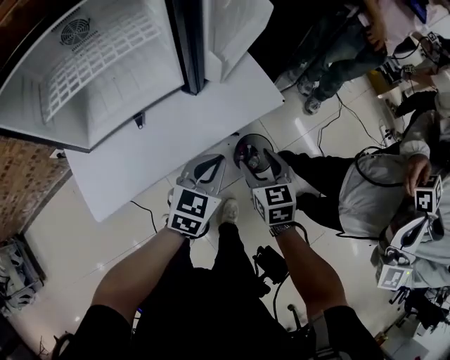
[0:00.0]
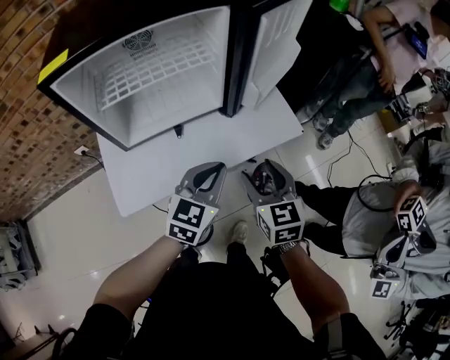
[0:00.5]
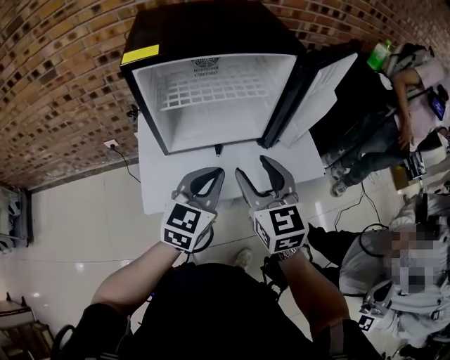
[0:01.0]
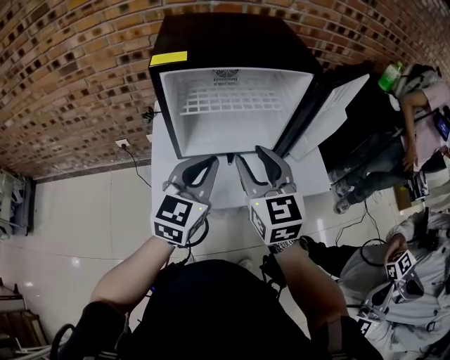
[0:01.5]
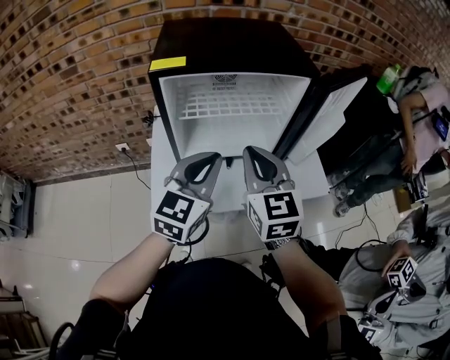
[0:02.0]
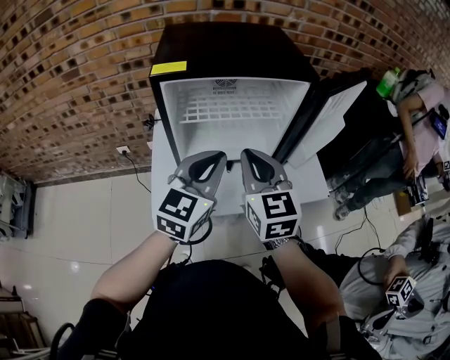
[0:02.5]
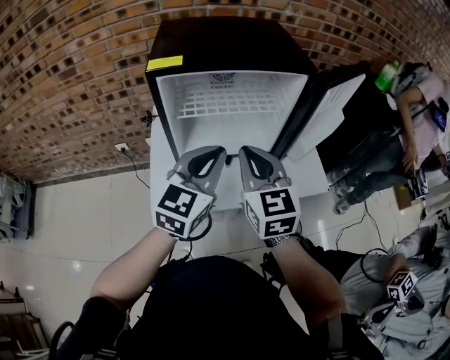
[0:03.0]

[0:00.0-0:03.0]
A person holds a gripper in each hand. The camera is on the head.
0:00.0 to 0:01.5: The left gripper ends up some 35 cm from where it was, and rotates some 30 degrees; the right gripper travels upward by some 30 cm, and swivels approximately 40 degrees.
0:01.5 to 0:03.0: The right gripper closes up.

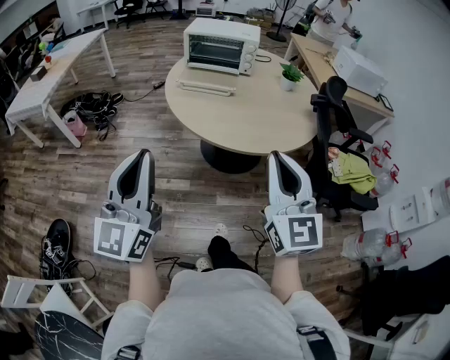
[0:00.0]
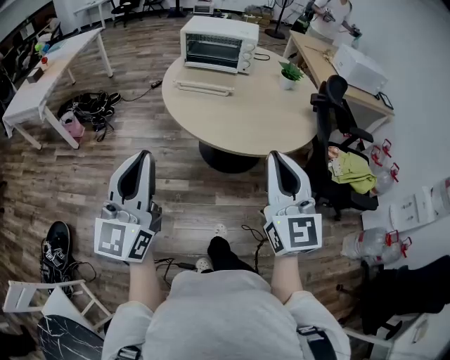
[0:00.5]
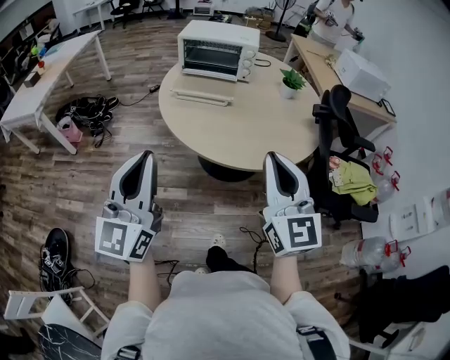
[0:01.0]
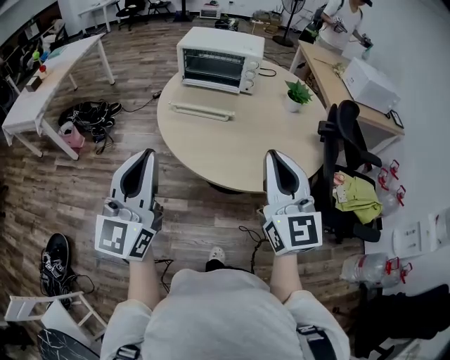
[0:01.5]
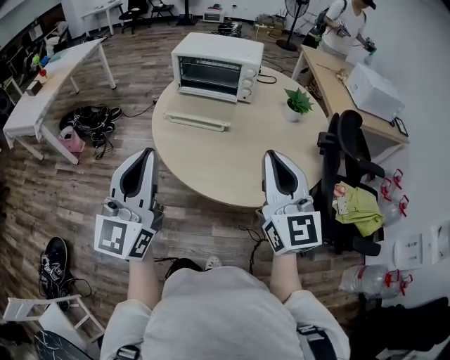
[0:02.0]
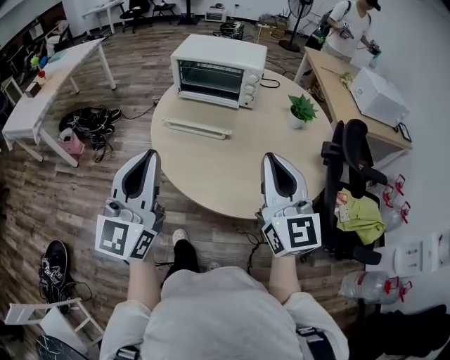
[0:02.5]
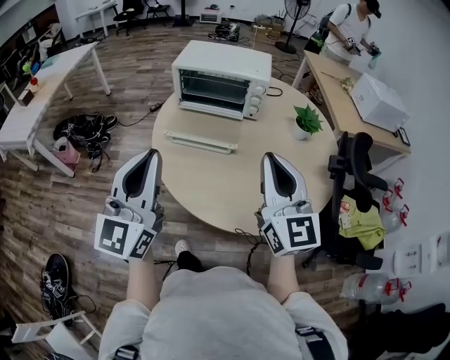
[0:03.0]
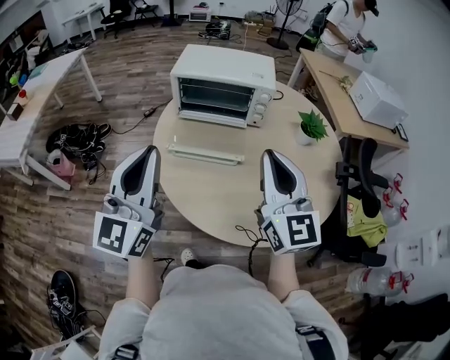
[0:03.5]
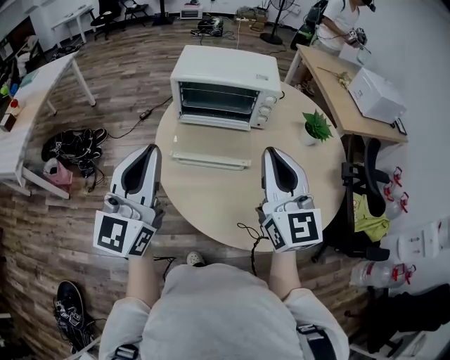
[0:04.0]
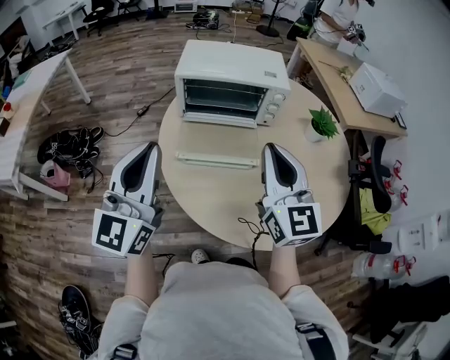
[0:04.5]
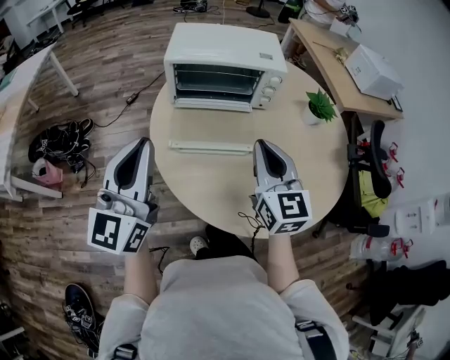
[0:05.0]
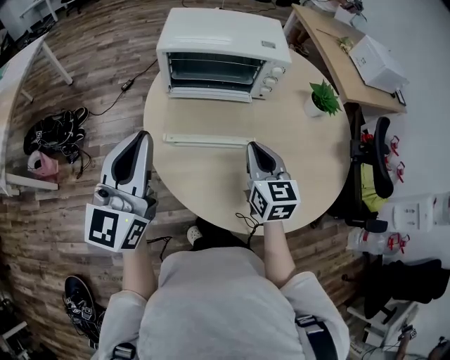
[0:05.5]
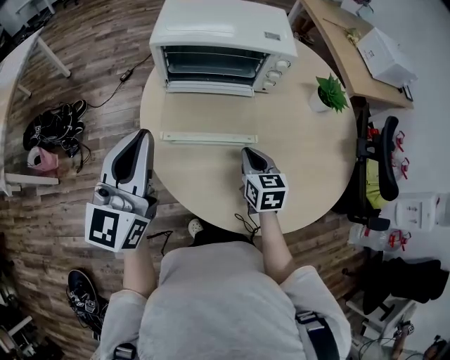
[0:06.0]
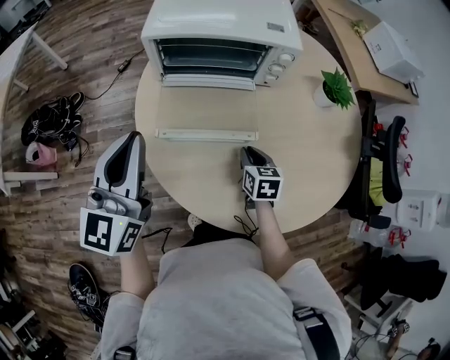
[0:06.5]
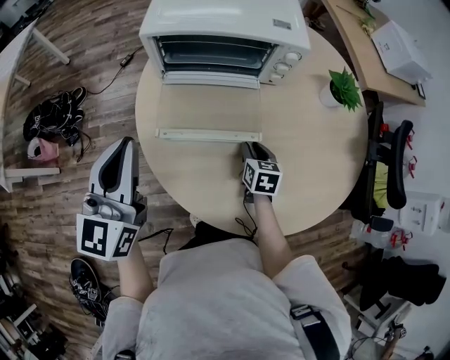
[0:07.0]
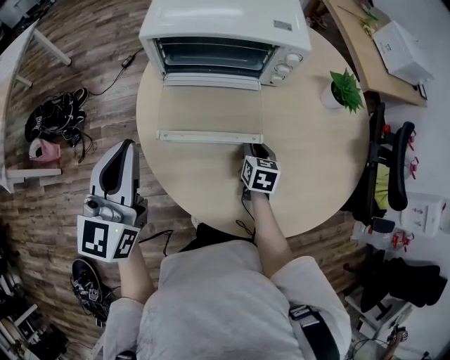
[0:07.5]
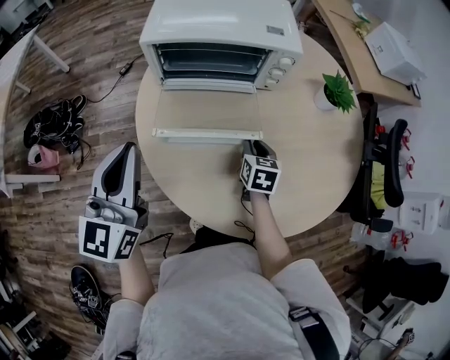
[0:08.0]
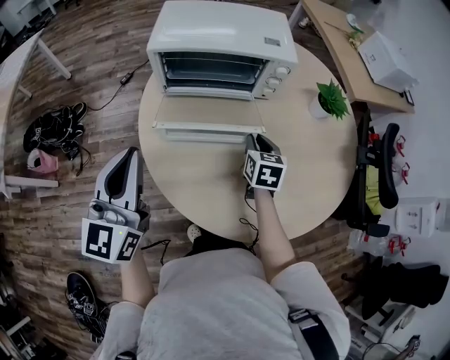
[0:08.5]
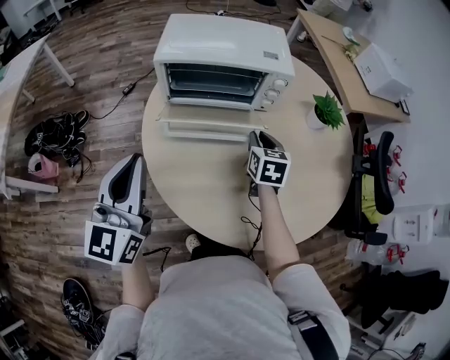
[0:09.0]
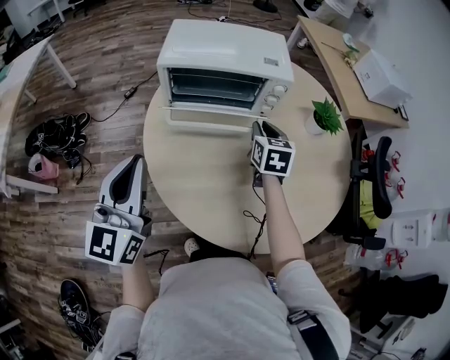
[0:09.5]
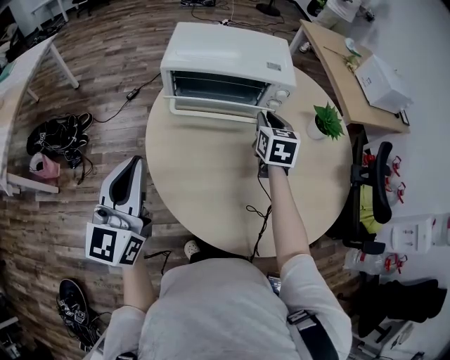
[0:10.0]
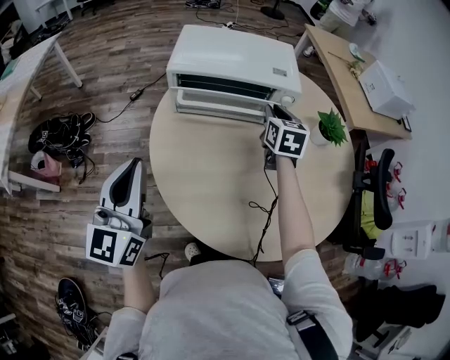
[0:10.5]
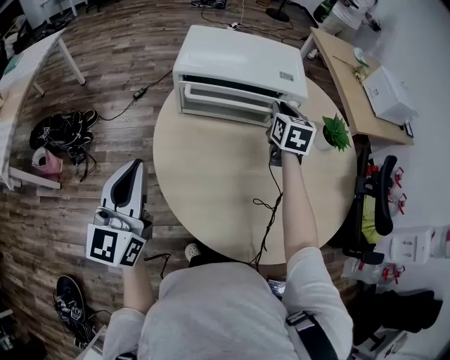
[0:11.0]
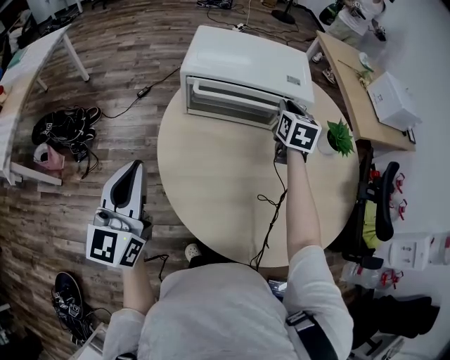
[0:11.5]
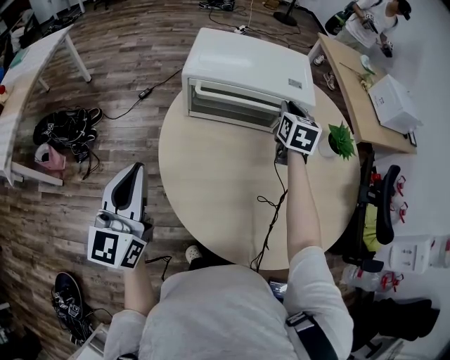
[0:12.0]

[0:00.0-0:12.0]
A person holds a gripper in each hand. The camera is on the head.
0:00.0 to 0:02.0: Both grippers move forward, some 25 cm.
0:02.0 to 0:04.0: Both grippers move forward and to the left, some 25 cm.
0:04.0 to 0:06.0: The left gripper shifts approximately 15 cm forward and downward. Meanwhile the right gripper moves downward, roughly 30 cm, and angles its fingers downward, by approximately 40 degrees.
0:06.0 to 0:08.0: The right gripper heads downward and forward, covering some 10 cm.
0:08.0 to 0:10.0: The right gripper travels upward and forward by some 20 cm.
0:10.0 to 0:12.0: The right gripper goes some 10 cm forward.

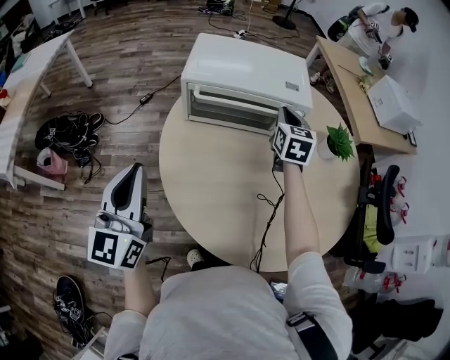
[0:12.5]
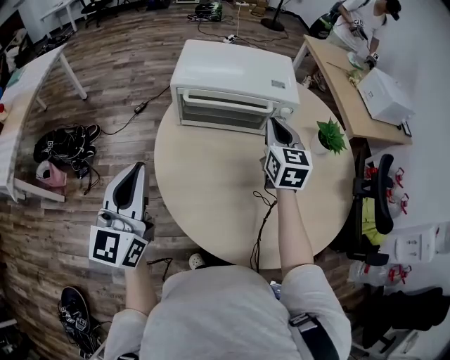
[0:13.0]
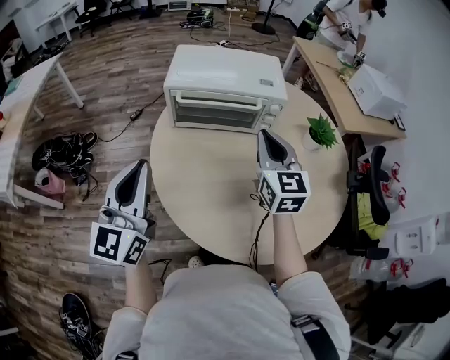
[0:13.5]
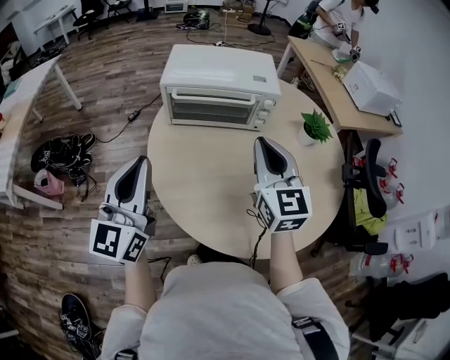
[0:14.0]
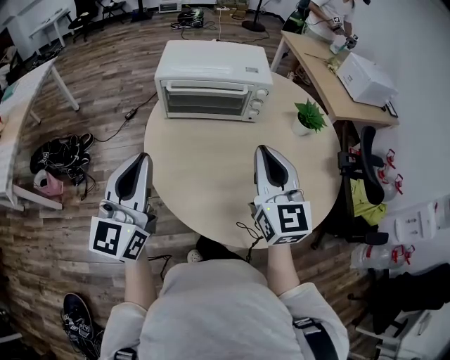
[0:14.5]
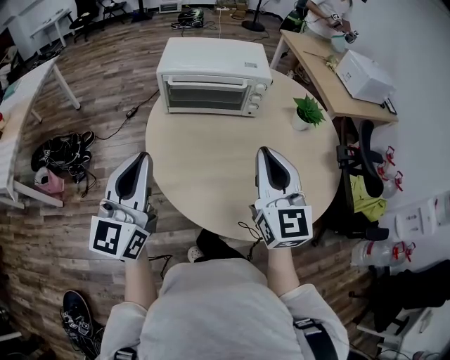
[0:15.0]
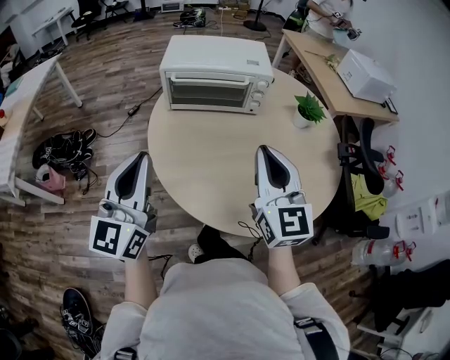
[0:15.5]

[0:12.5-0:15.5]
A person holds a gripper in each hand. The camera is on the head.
0:12.5 to 0:14.0: The left gripper heads to the right, covering roughly 5 cm. Meanwhile the right gripper travels backward and upward by some 25 cm, and changes its angle by some 20 degrees.
0:14.0 to 0:15.5: The left gripper is displaced backward by about 5 cm. The right gripper goes some 10 cm backward.

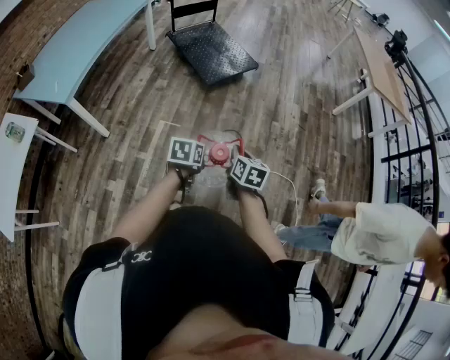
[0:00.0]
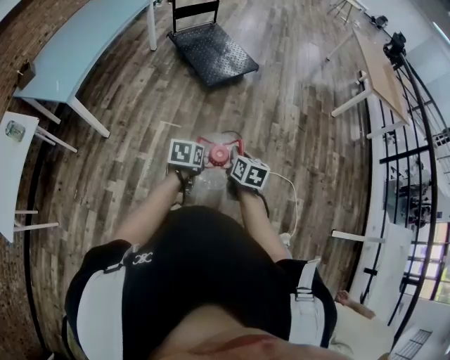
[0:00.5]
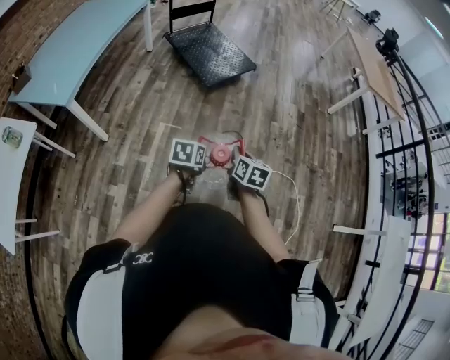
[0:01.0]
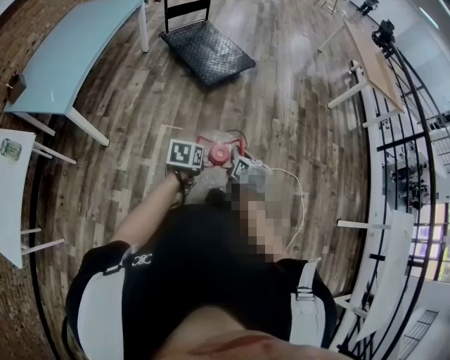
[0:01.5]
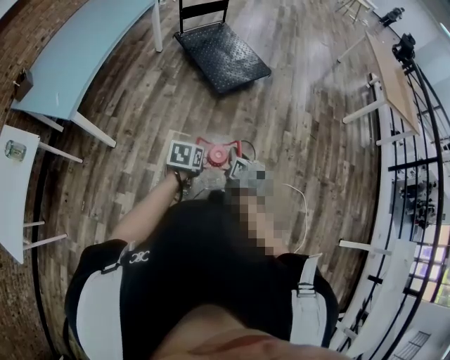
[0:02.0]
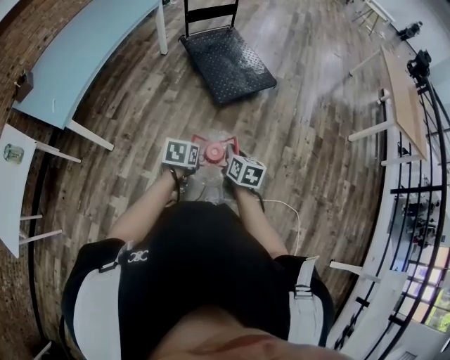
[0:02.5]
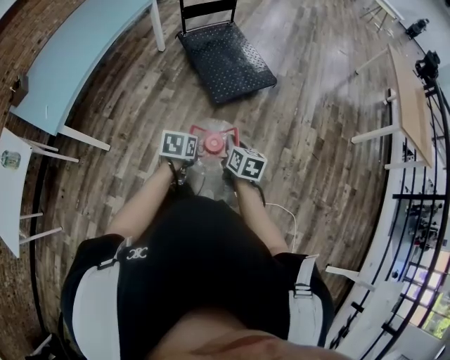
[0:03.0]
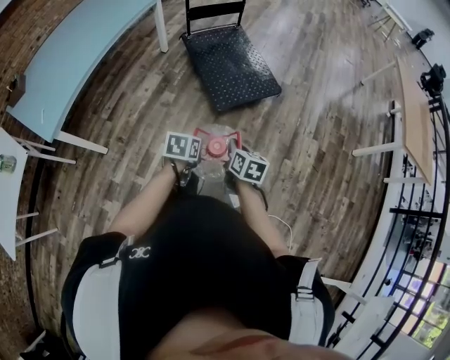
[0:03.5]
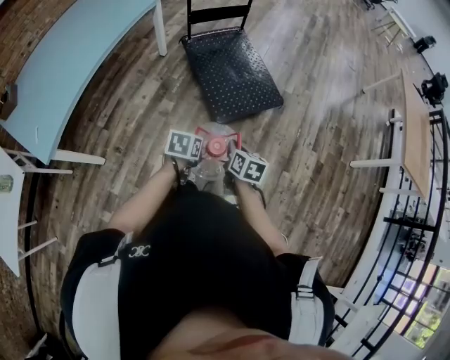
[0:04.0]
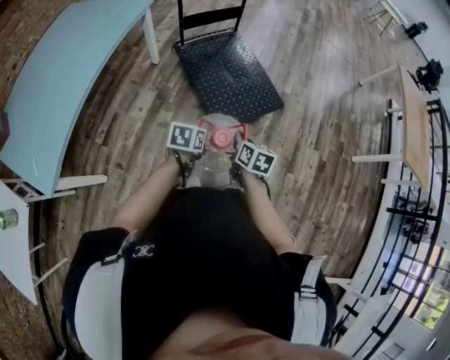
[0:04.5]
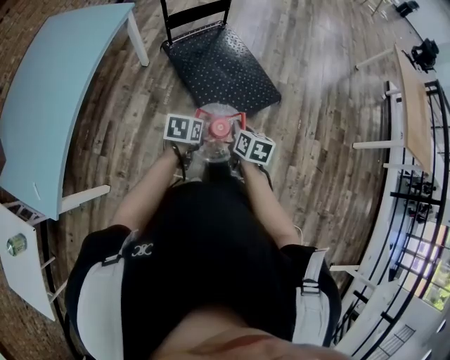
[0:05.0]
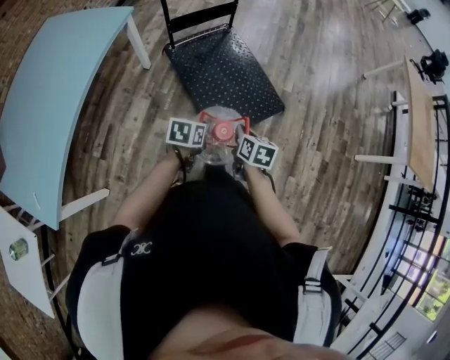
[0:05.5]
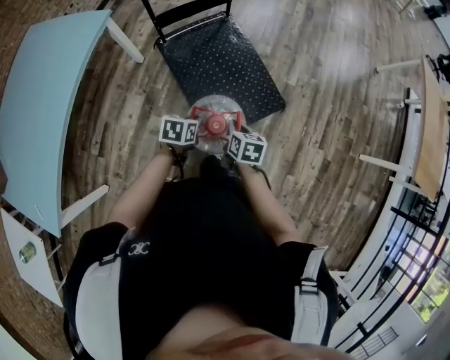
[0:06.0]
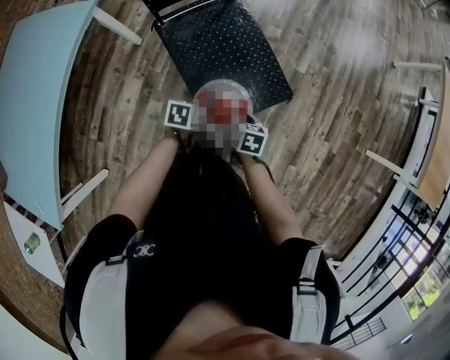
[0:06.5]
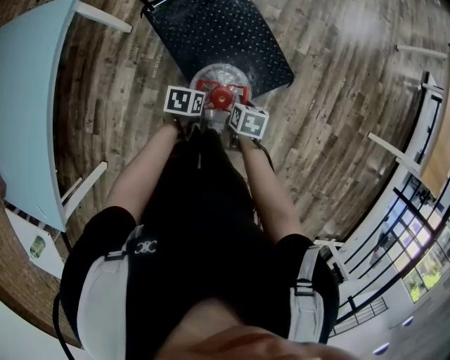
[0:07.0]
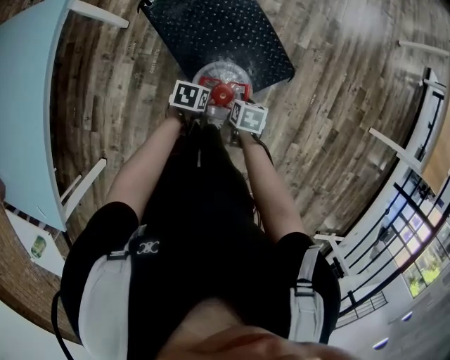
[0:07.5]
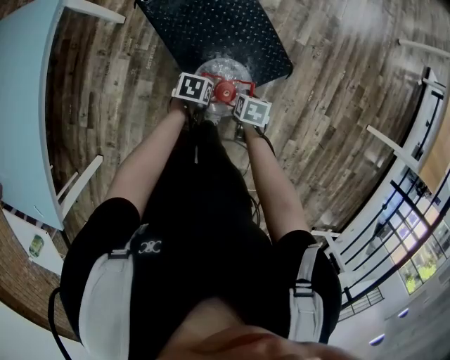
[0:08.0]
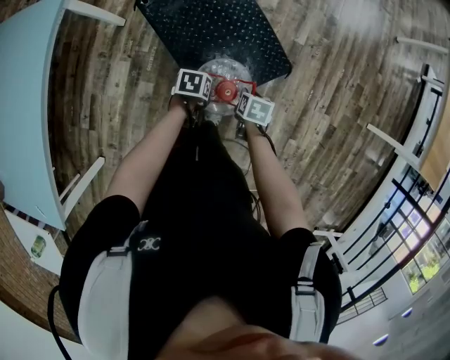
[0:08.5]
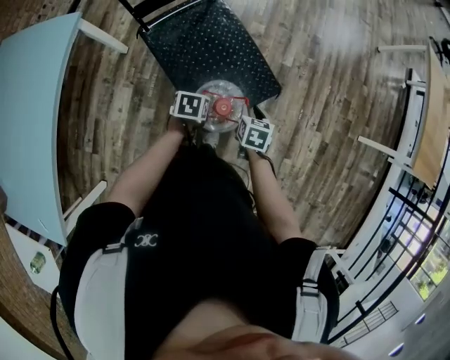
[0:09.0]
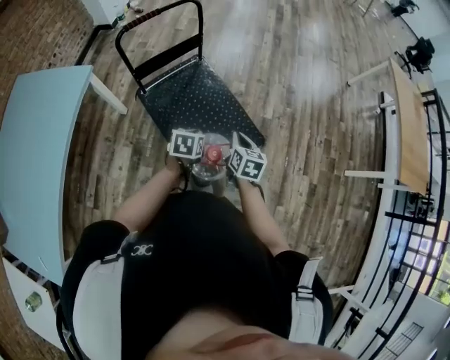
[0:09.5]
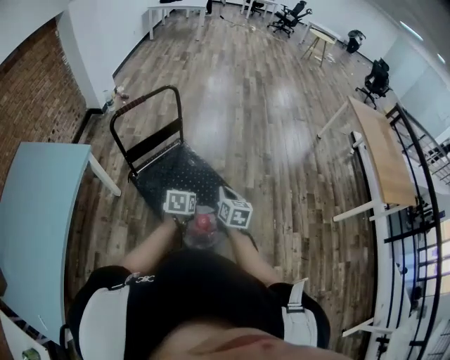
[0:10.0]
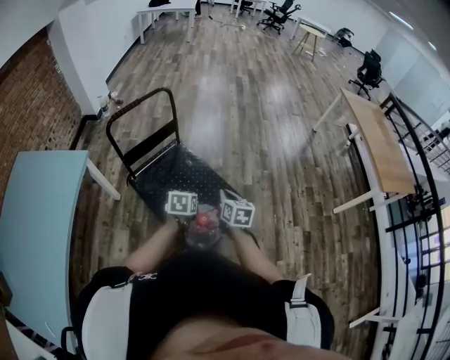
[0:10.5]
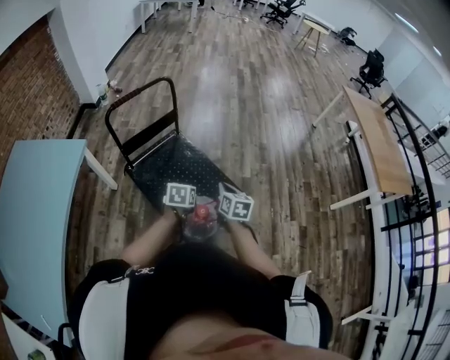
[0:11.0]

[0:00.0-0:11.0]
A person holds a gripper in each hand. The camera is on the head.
0:00.0 to 0:02.0: The two grippers go about 15 cm to the left and forward.
0:02.0 to 0:03.5: Both grippers travel together forward, about 25 cm.
0:03.5 to 0:05.5: The grippers both shift forward by about 35 cm.
0:05.5 to 0:07.5: The grippers both shift forward and downward by about 25 cm. The right gripper turns by some 20 degrees; the left gripper turns by some 20 degrees.
0:07.5 to 0:09.0: The grippers both shift upward by about 10 cm. The right gripper opens its fingers, while the left gripper opens, then closes again.
0:09.0 to 0:11.0: The left gripper travels upward and forward by roughly 15 cm, and swivels approximately 20 degrees, while the right gripper is displaced upward by roughly 15 cm, swivels about 30 degrees, and closes up.
